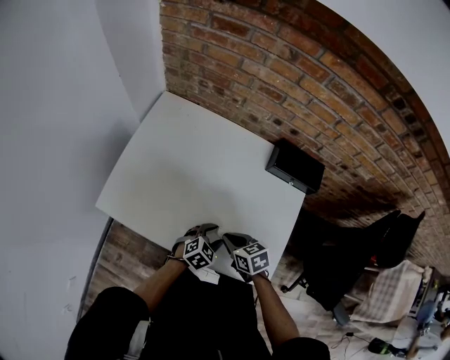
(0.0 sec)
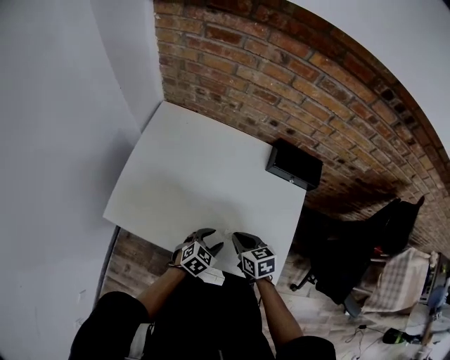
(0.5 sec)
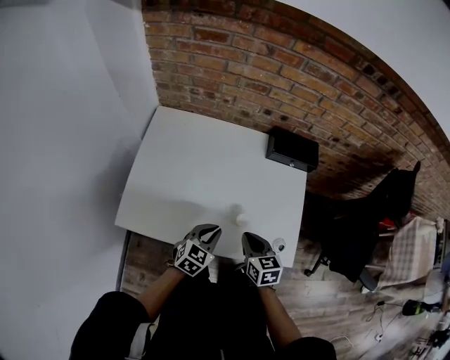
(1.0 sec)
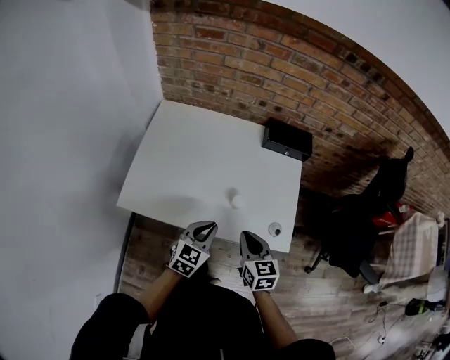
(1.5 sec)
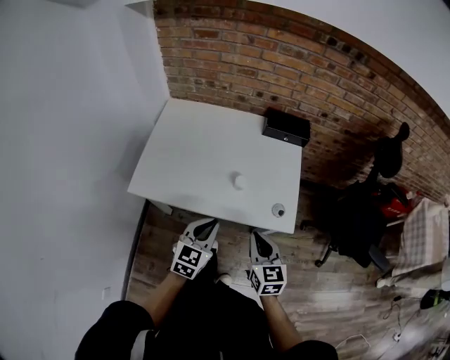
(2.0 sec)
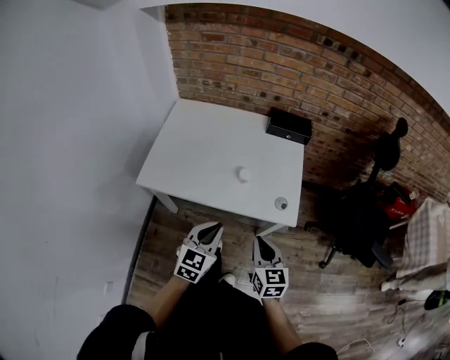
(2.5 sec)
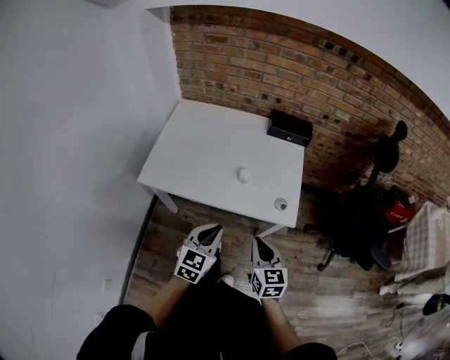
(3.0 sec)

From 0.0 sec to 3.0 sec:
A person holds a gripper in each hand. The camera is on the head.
From 0.0 sec to 1.5 sec: The left gripper goes approximately 20 cm upward, backward and to the left, swivels some 20 degrees, and closes its fingers; the right gripper travels backward and upward by roughly 15 cm, and swivels about 40 degrees.
From 1.5 sec to 3.0 sec: The grippers both shift backward by approximately 15 cm.

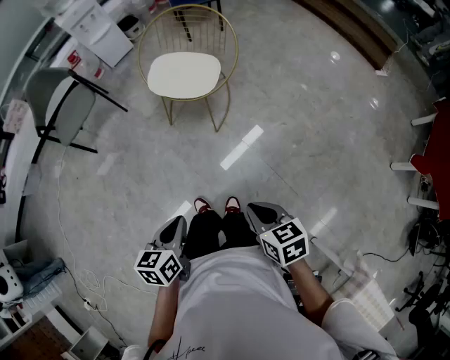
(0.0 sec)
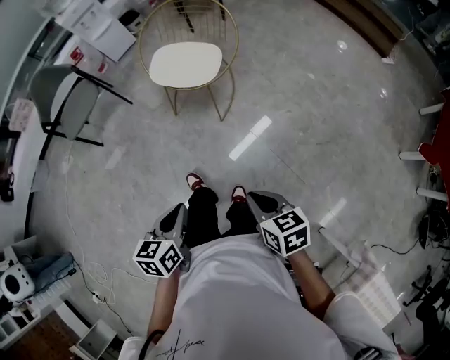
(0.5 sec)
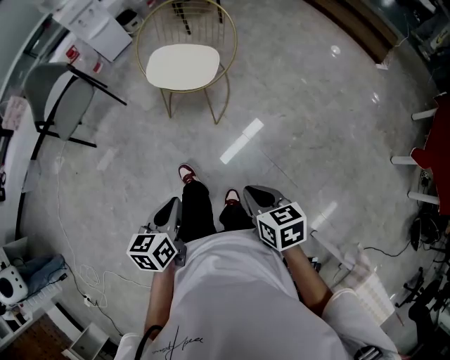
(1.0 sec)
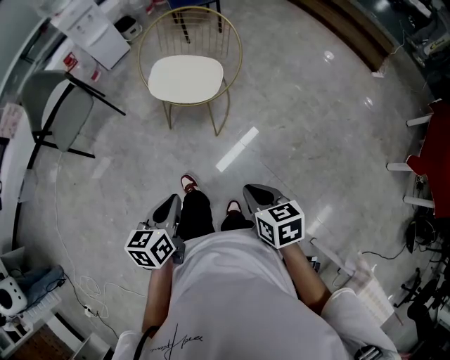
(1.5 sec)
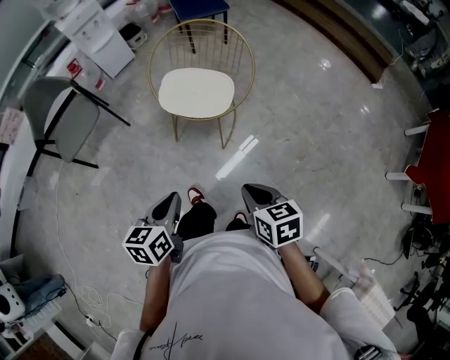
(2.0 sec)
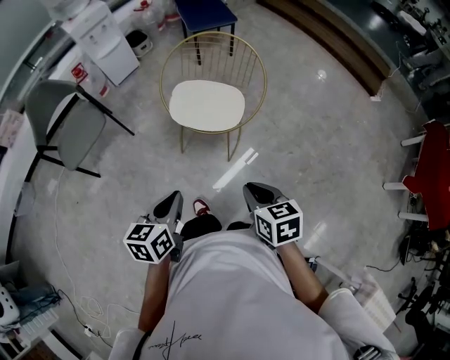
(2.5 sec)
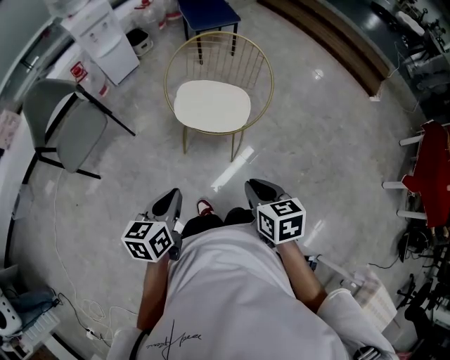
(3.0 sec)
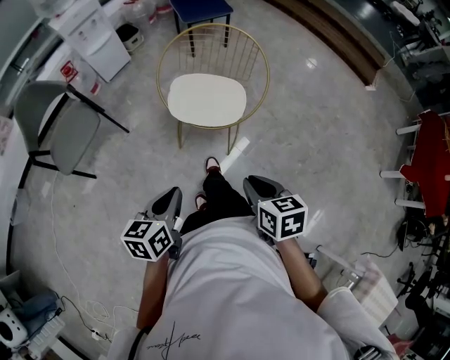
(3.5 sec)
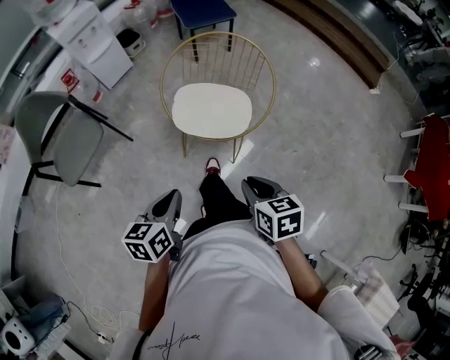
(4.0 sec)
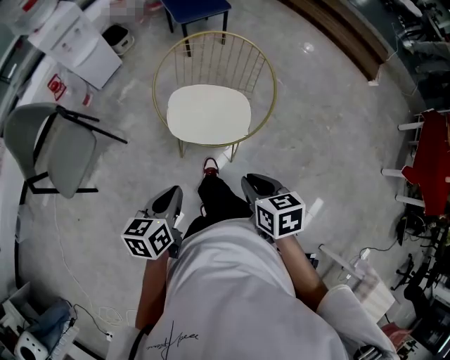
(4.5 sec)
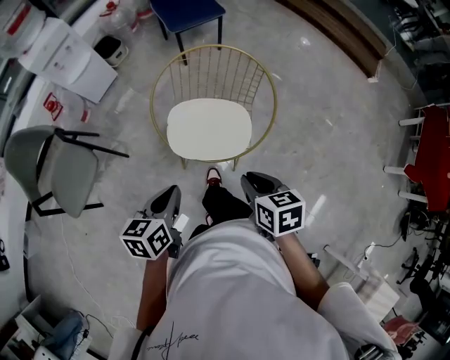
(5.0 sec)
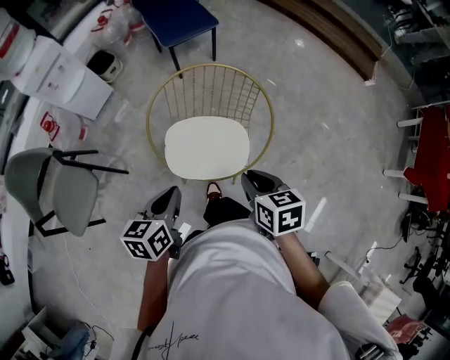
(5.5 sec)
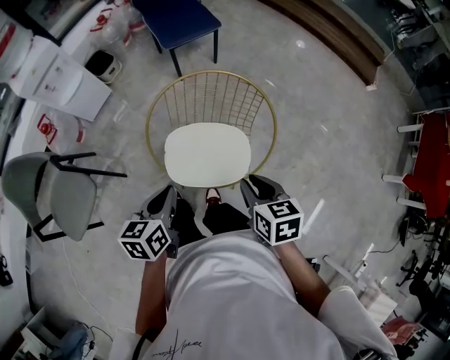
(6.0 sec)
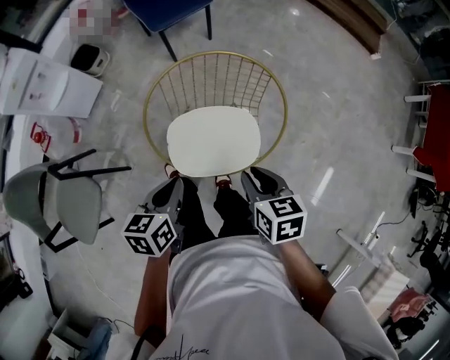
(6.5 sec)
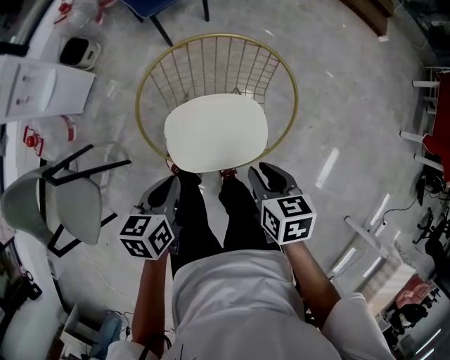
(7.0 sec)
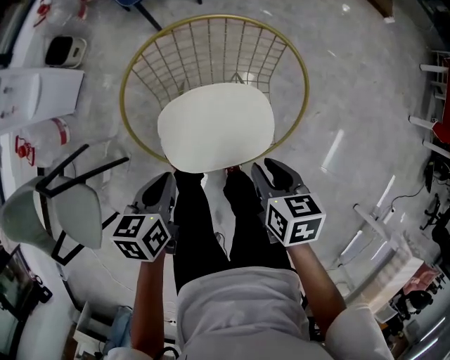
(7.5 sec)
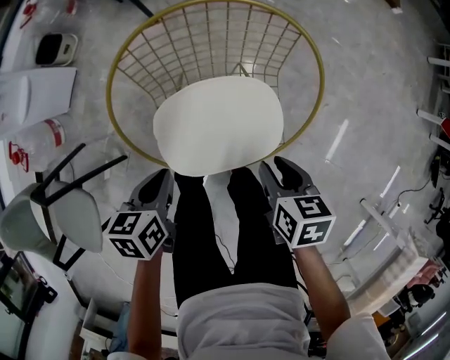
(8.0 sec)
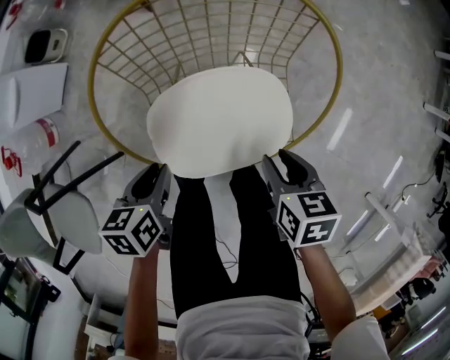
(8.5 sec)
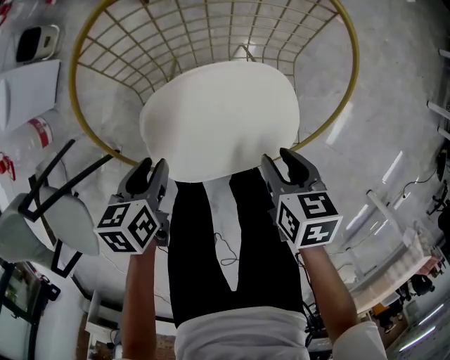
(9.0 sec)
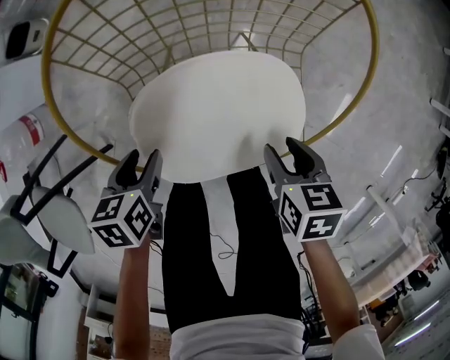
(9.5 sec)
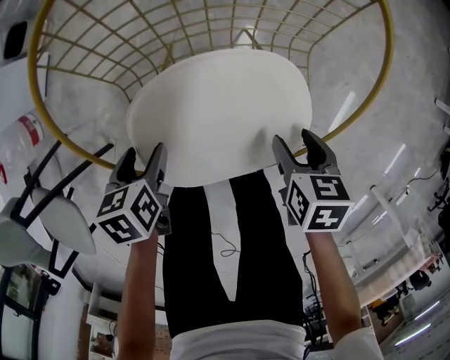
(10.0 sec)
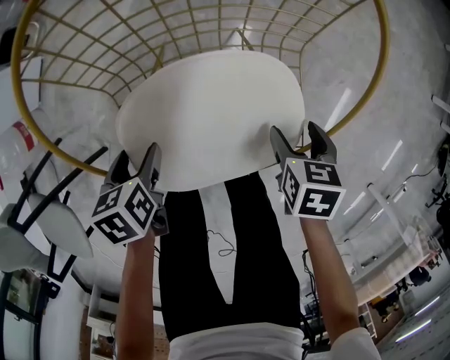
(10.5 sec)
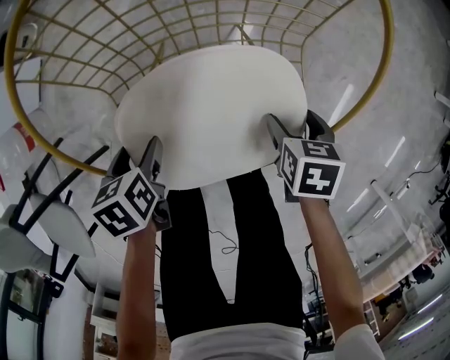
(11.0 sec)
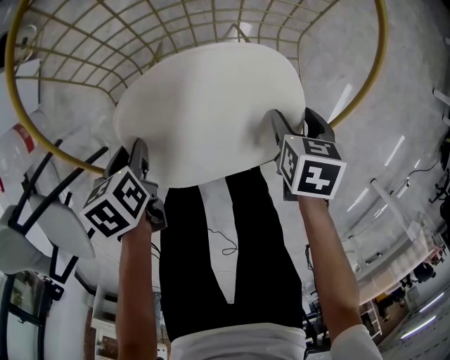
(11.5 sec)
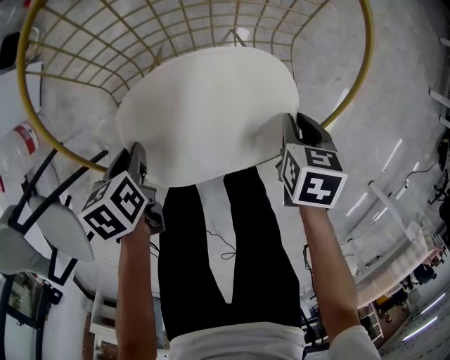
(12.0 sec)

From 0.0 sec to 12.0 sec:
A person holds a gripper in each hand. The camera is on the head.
From 0.0 sec to 2.0 sec: The two grippers go some 20 cm forward and to the left.
From 2.0 sec to 4.0 sec: Both grippers move forward and to the left, about 20 cm.
From 4.0 sec to 6.0 sec: Both grippers travel together forward, approximately 30 cm.
From 6.0 sec to 8.0 sec: The left gripper travels downward and forward by about 25 cm, and swivels about 20 degrees. The right gripper travels downward by about 20 cm, and rotates some 20 degrees.
From 8.0 sec to 10.0 sec: The two grippers go approximately 15 cm downward. The left gripper opens its fingers.
From 10.0 sec to 12.0 sec: The left gripper closes its fingers, while the right gripper shifts by about 5 cm, and closes.

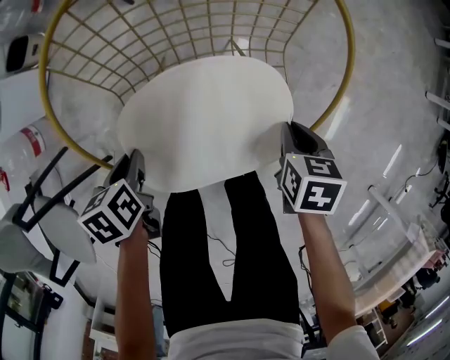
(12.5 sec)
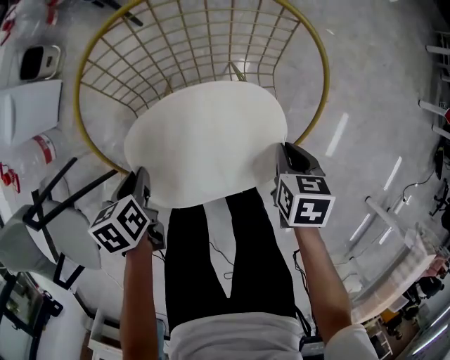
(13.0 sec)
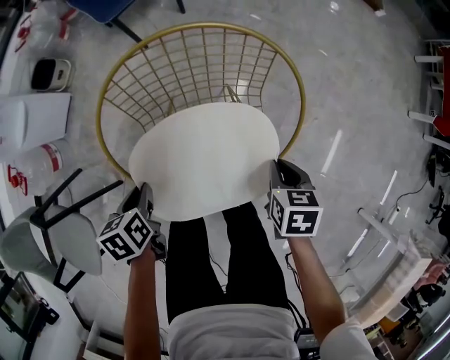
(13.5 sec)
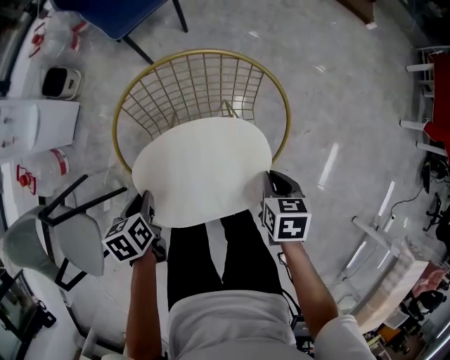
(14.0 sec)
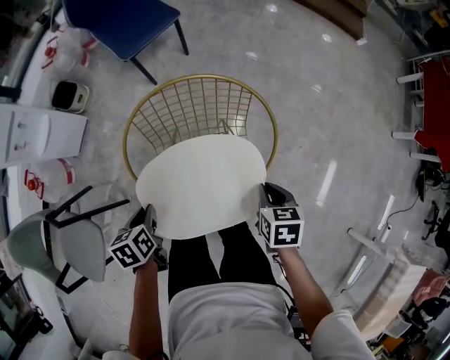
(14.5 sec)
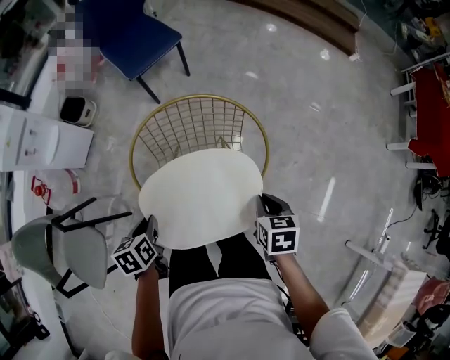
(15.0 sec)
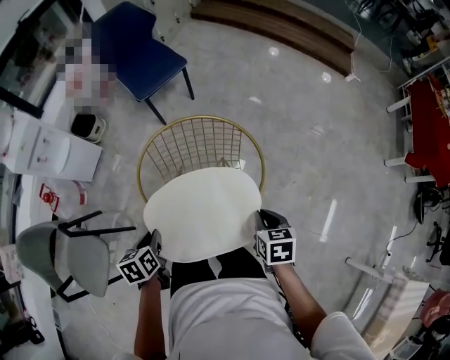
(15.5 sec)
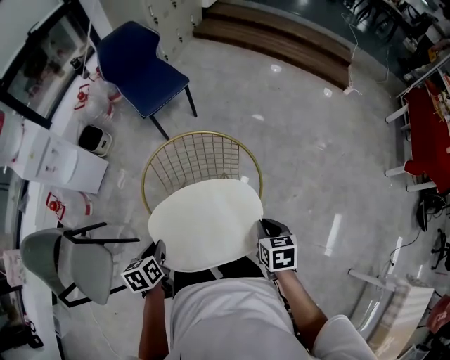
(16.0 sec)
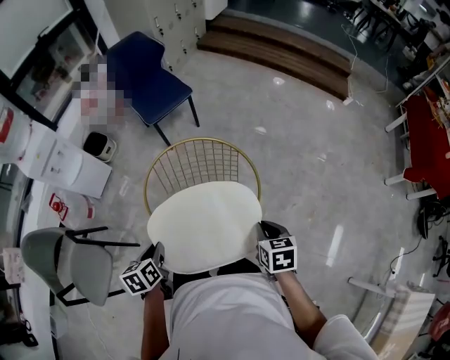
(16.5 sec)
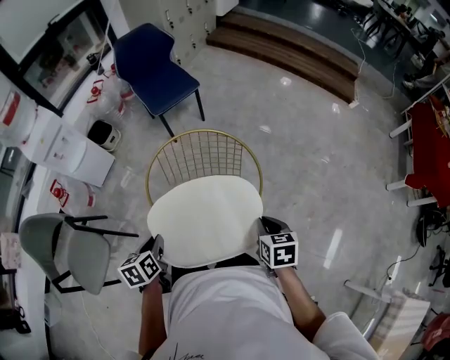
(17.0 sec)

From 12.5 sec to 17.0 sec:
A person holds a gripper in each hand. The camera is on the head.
From 12.5 sec to 14.5 sec: The two grippers go approximately 20 cm upward.
From 14.5 sec to 17.0 sec: The two grippers go some 15 cm upward and backward.

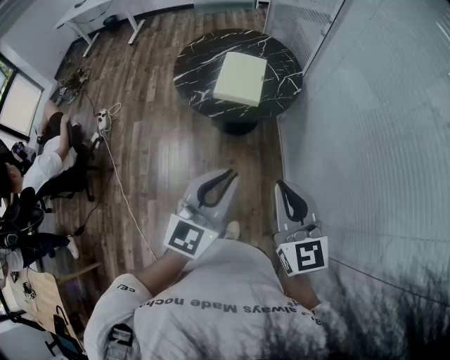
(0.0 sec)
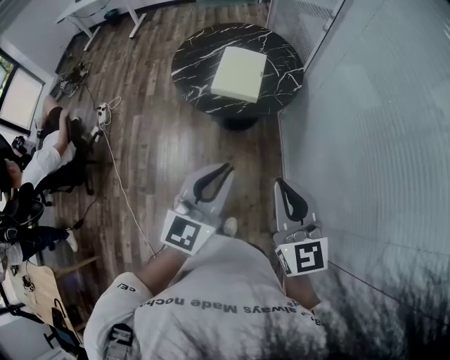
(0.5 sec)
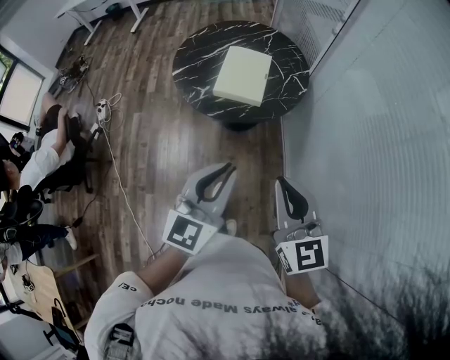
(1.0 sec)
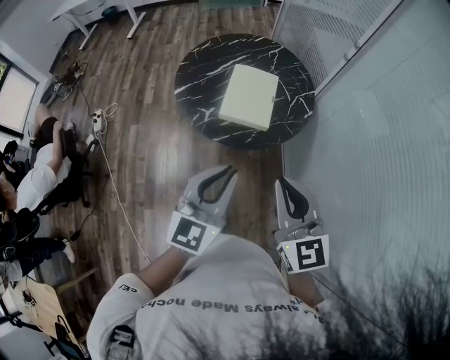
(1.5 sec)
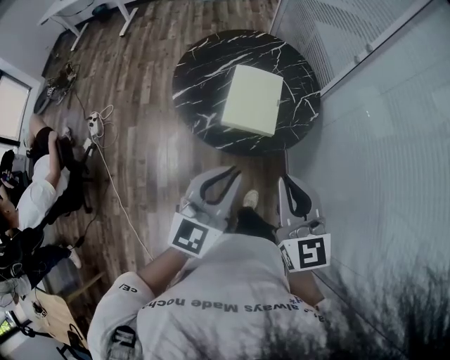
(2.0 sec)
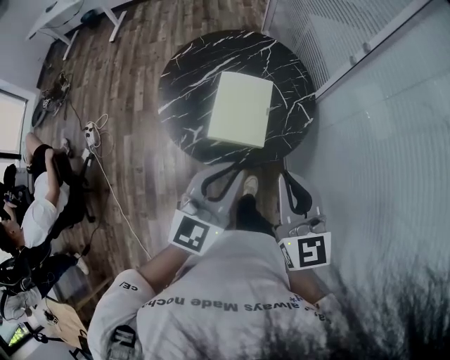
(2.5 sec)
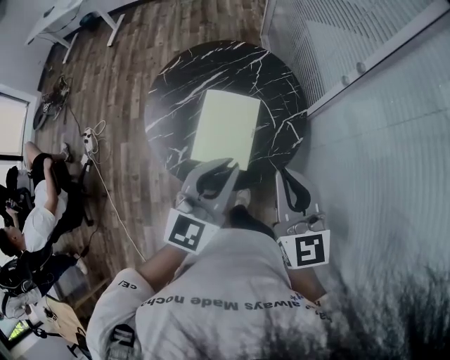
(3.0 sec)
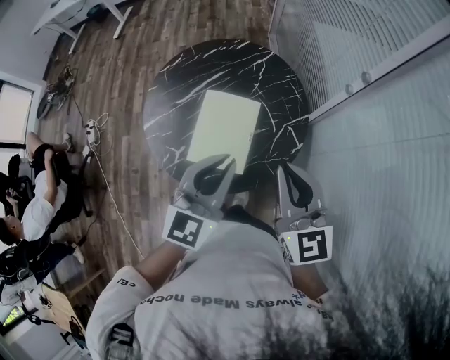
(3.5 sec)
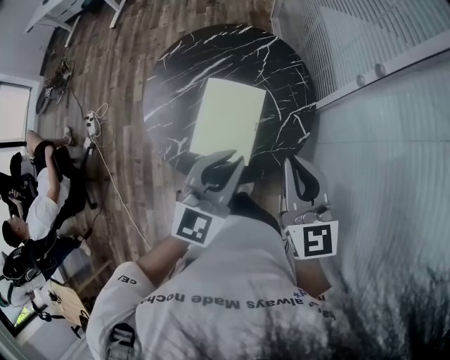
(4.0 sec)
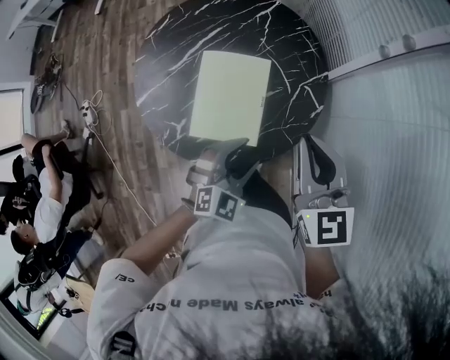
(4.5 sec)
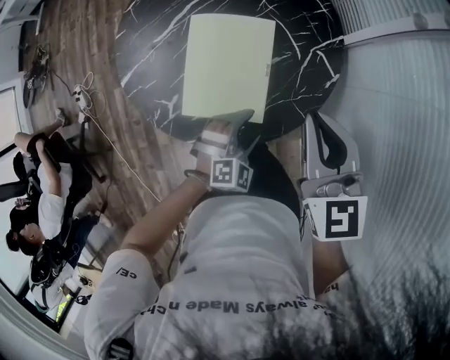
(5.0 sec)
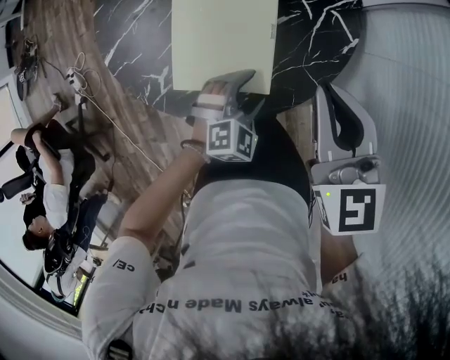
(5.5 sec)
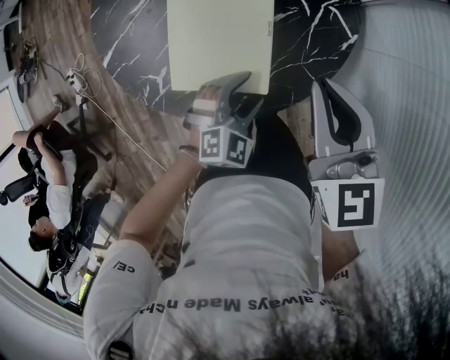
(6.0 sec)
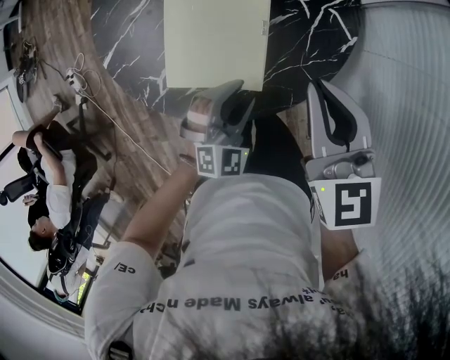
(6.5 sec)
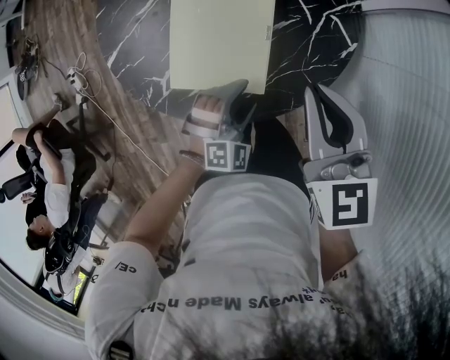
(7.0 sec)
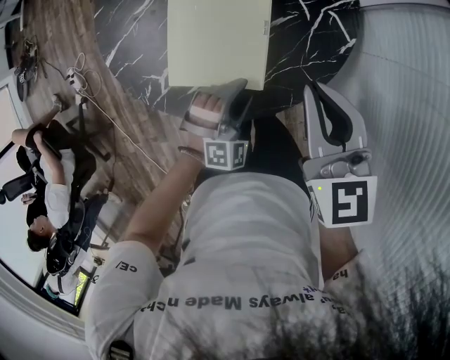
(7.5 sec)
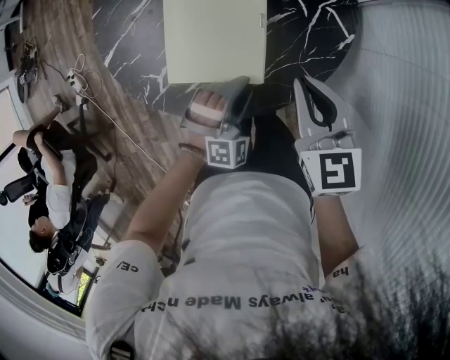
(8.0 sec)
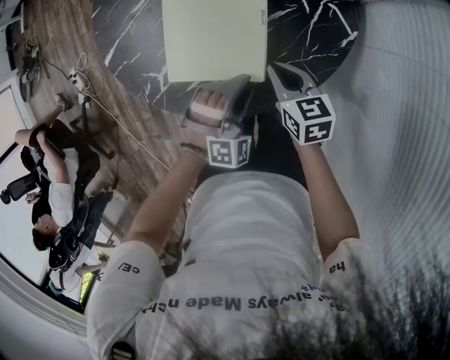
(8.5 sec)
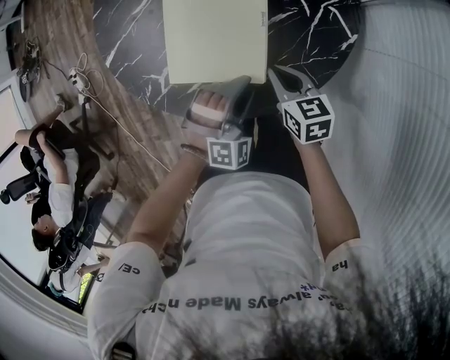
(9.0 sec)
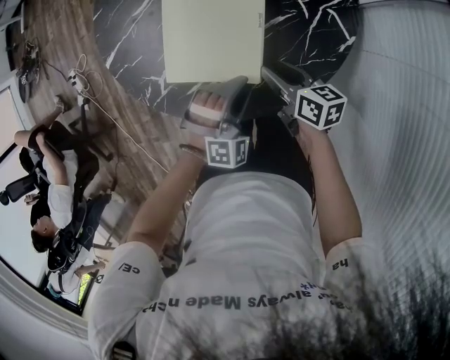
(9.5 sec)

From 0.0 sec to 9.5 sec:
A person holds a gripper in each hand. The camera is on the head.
From 0.0 sec to 2.0 sec: Both grippers travel together forward, some 25 cm.
From 2.0 sec to 4.0 sec: Both grippers travel together forward and to the right, approximately 30 cm.
From 4.0 sec to 5.5 sec: The right gripper travels downward by roughly 20 cm; the left gripper is displaced downward by approximately 40 cm, points its fingers about 40 degrees further downward, and opens its fingers.
From 5.5 sec to 7.5 sec: The left gripper turns by about 20 degrees, and closes its fingers.
From 7.5 sec to 9.5 sec: The right gripper shifts some 20 cm downward, rotates approximately 40 degrees, and opens its fingers.
